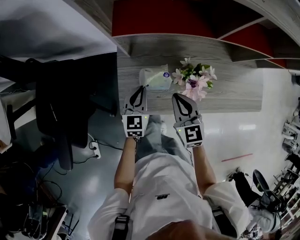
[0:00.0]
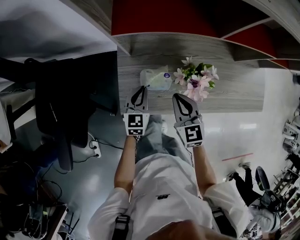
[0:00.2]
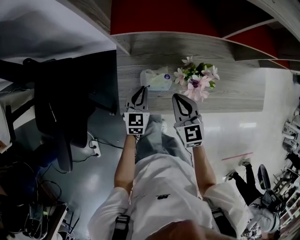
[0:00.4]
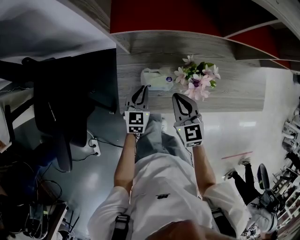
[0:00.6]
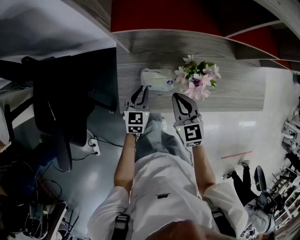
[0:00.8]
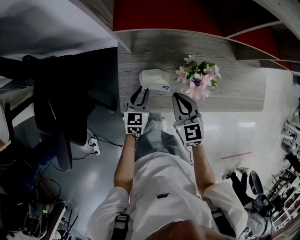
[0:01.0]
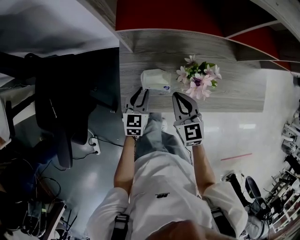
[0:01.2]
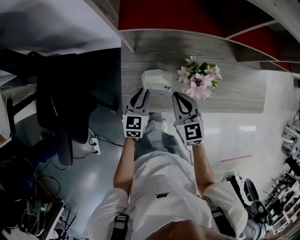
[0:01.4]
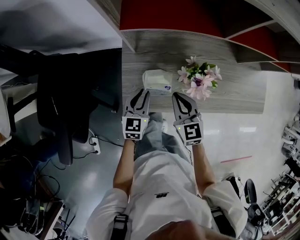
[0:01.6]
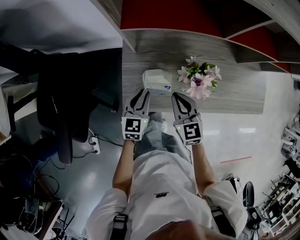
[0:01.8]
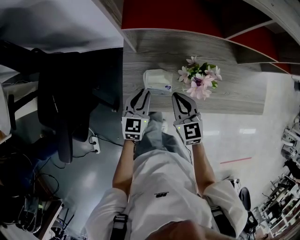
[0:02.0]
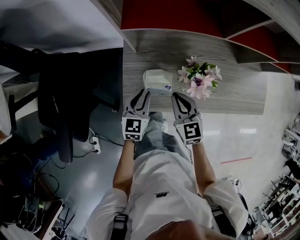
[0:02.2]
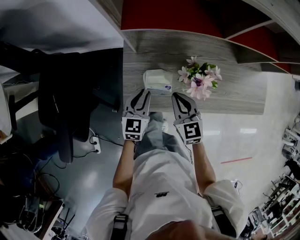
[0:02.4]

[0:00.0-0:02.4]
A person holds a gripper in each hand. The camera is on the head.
0:00.0 to 0:01.2: The left gripper changes place by some 5 cm.
0:01.2 to 0:02.4: The grippers move only a little.

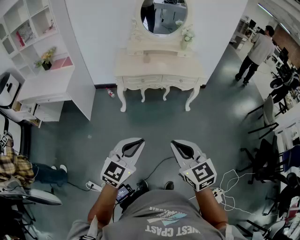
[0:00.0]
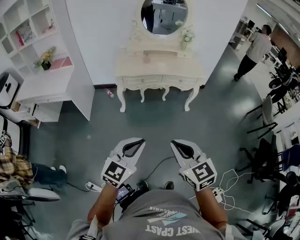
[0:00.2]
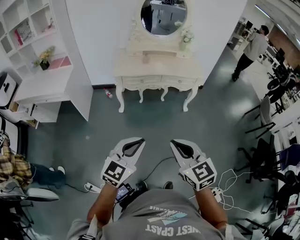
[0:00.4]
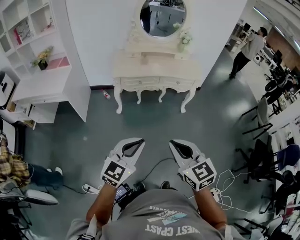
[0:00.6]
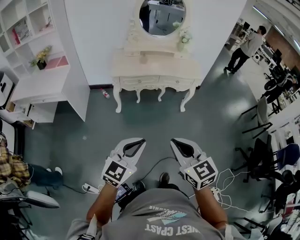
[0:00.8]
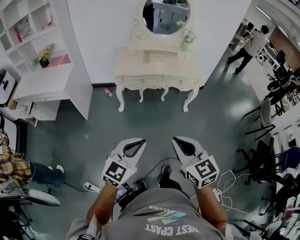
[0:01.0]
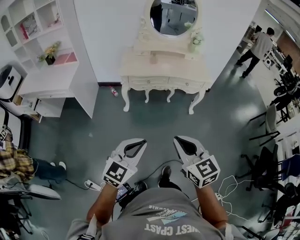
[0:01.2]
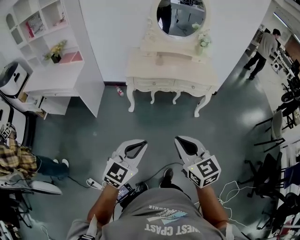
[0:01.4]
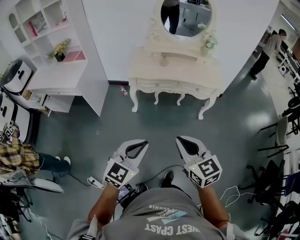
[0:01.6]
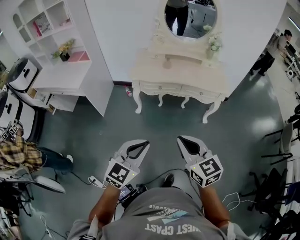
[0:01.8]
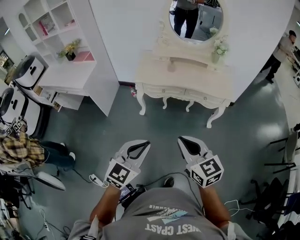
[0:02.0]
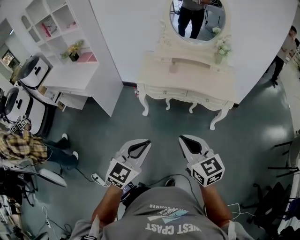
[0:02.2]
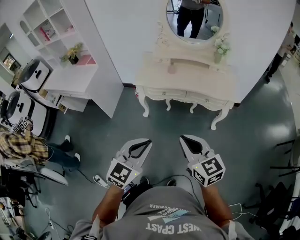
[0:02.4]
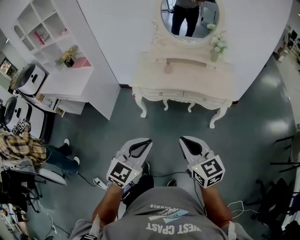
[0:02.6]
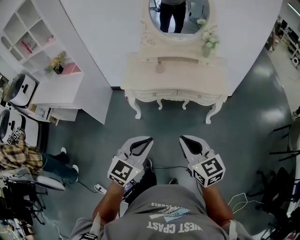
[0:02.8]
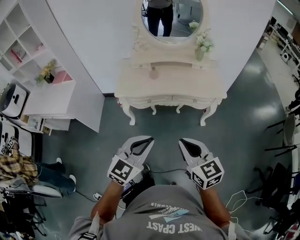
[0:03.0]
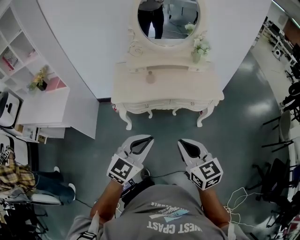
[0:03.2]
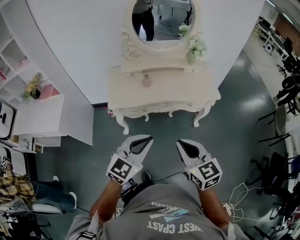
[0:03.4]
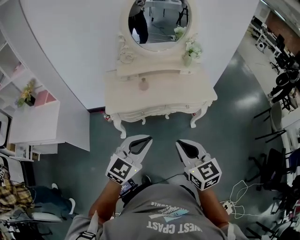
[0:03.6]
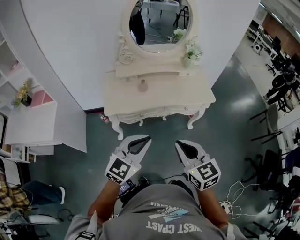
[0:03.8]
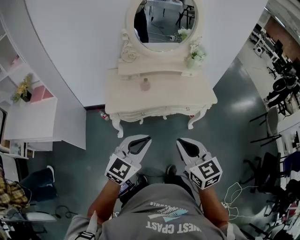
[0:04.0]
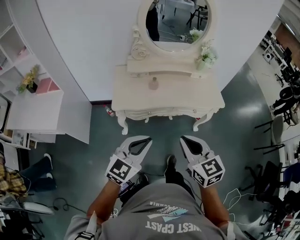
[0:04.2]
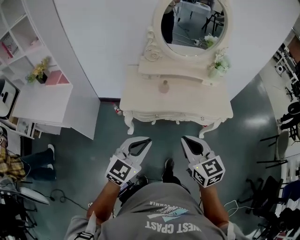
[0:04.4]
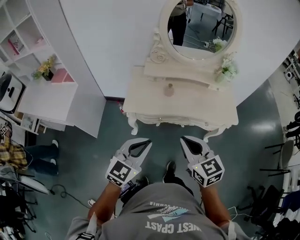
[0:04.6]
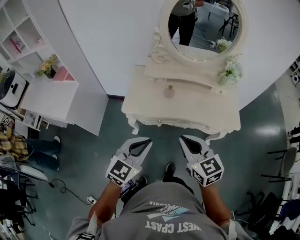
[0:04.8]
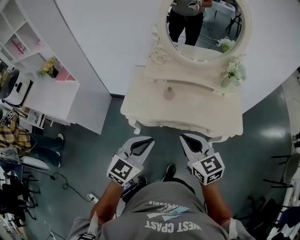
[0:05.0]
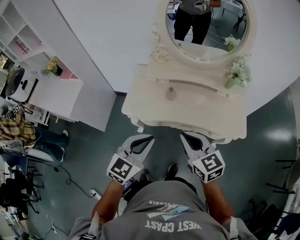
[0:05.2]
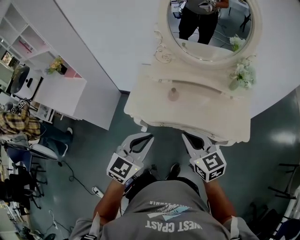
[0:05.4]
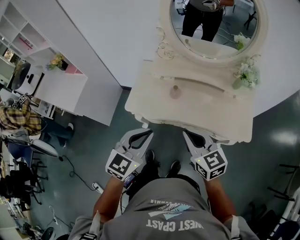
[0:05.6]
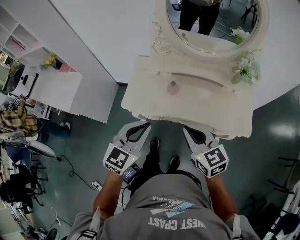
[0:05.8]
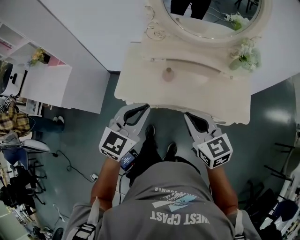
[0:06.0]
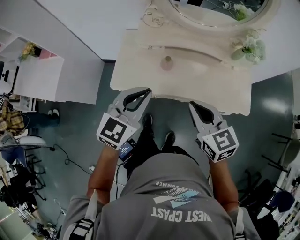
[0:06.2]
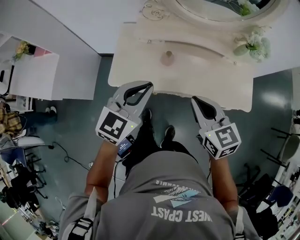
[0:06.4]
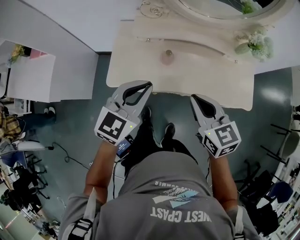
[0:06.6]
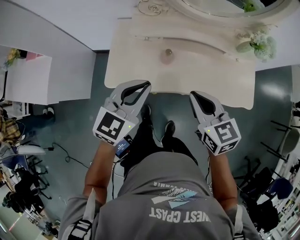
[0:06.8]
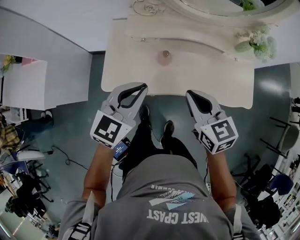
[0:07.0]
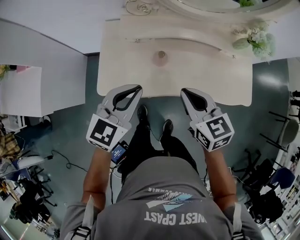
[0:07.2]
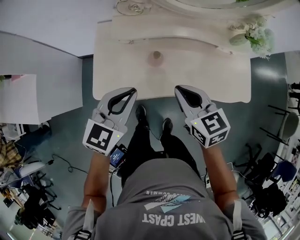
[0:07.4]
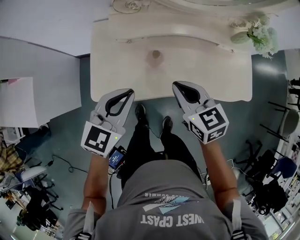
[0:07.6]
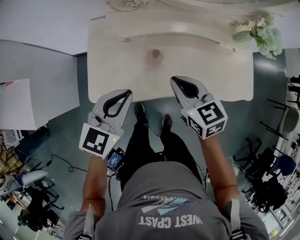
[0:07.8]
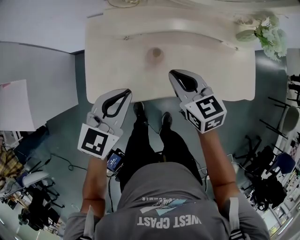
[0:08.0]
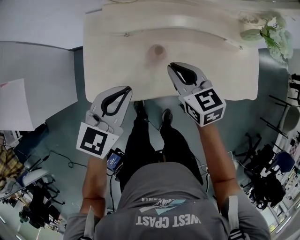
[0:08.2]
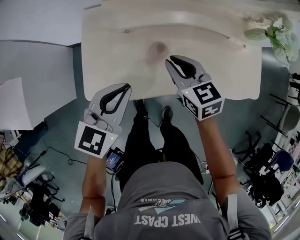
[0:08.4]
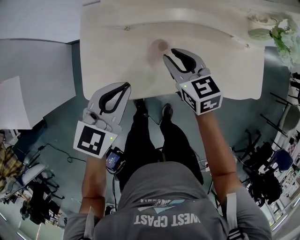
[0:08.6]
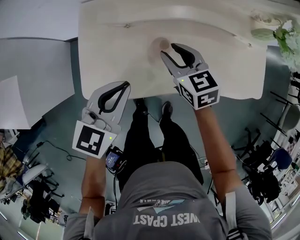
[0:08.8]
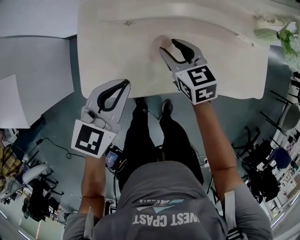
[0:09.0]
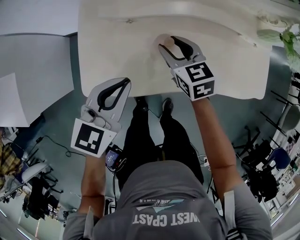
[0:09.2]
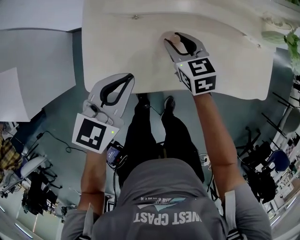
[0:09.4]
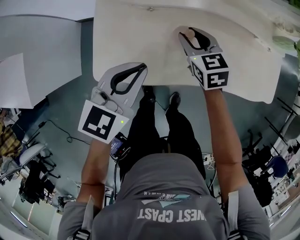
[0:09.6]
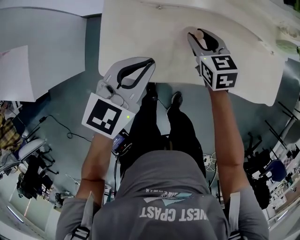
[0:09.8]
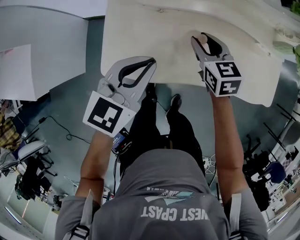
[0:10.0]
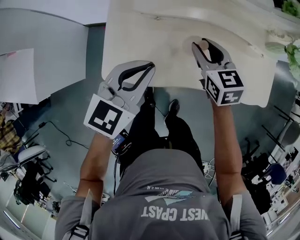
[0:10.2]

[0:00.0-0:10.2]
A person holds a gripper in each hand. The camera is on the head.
0:00.0 to 0:01.4: The right gripper is displaced forward by approximately 10 cm. Meanwhile the left gripper travels forward by roughly 5 cm.
0:01.4 to 0:03.0: The grippers both shift forward and to the right by some 30 cm.
0:03.0 to 0:04.4: The grippers both shift to the left and forward by about 20 cm.
0:04.4 to 0:05.8: The two grippers go some 25 cm forward and to the right.
0:05.8 to 0:07.2: The grippers both shift forward and downward by some 15 cm.
0:07.2 to 0:08.8: The right gripper travels downward and forward by approximately 25 cm, and opens its fingers, while the left gripper shifts approximately 15 cm downward and forward.
0:08.8 to 0:10.2: The grippers move only a little.

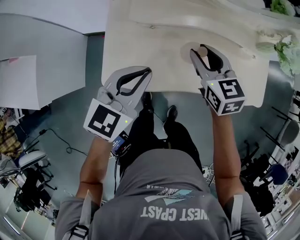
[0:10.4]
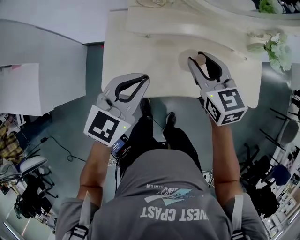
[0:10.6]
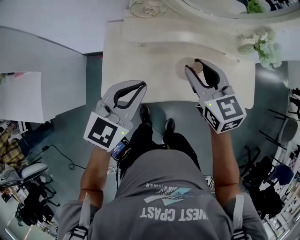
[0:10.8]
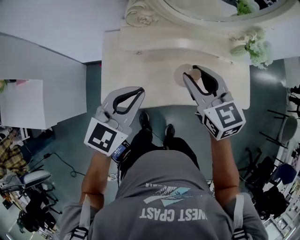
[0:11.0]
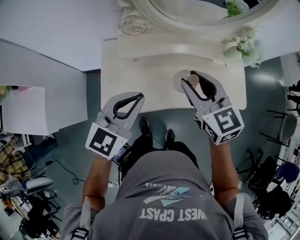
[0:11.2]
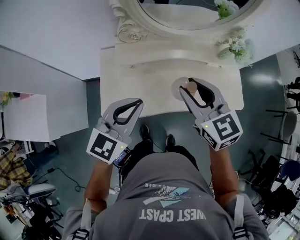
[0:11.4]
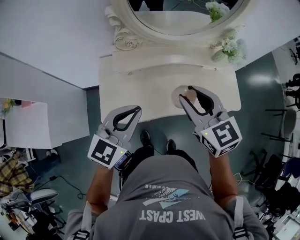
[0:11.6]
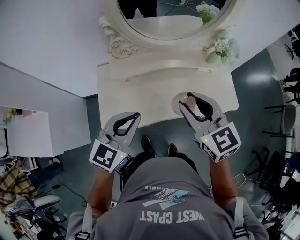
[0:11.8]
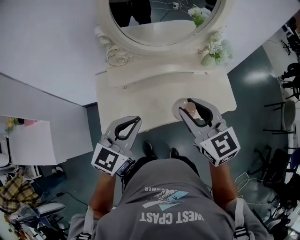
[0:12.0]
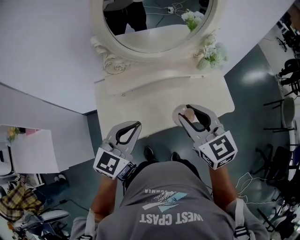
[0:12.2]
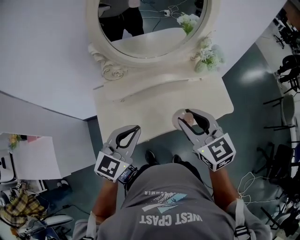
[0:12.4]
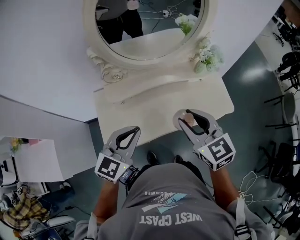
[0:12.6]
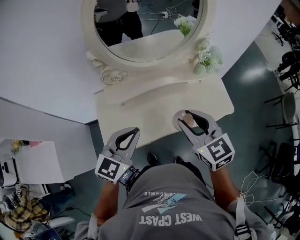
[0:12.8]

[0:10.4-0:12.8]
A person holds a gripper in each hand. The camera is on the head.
0:10.4 to 0:11.6: The right gripper goes some 25 cm upward and backward. The left gripper moves upward, backward and to the right, roughly 15 cm.
0:11.6 to 0:12.8: The right gripper shifts about 5 cm to the right.

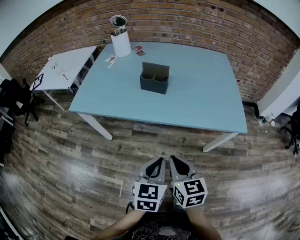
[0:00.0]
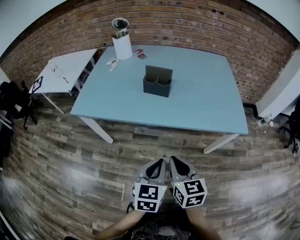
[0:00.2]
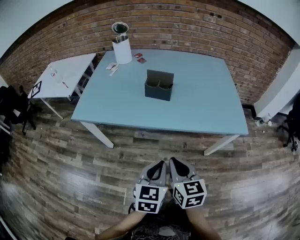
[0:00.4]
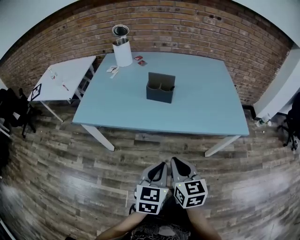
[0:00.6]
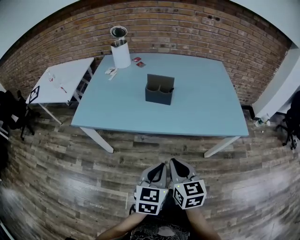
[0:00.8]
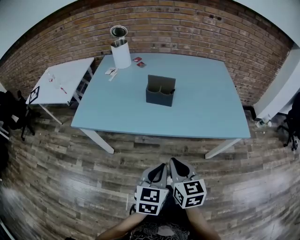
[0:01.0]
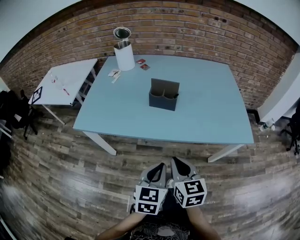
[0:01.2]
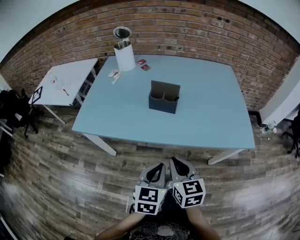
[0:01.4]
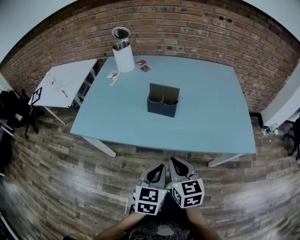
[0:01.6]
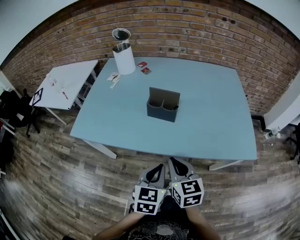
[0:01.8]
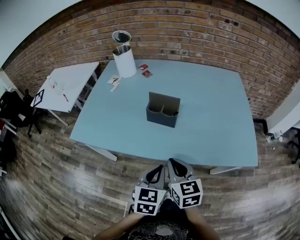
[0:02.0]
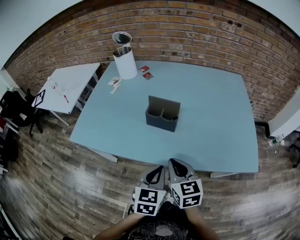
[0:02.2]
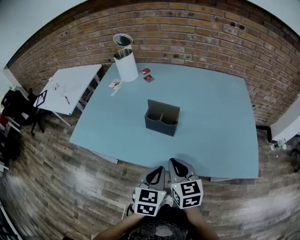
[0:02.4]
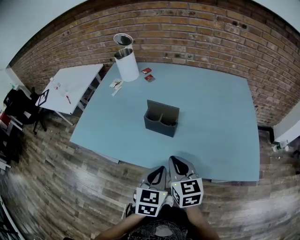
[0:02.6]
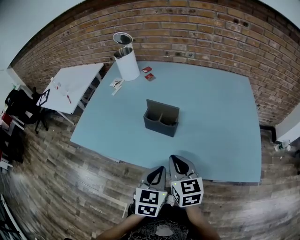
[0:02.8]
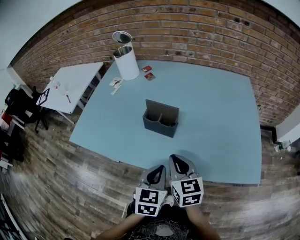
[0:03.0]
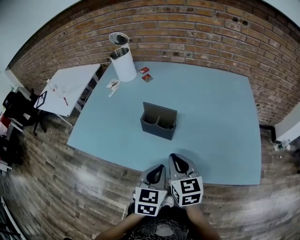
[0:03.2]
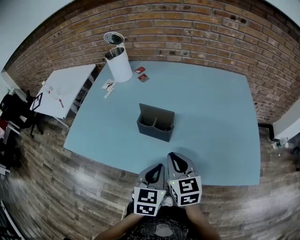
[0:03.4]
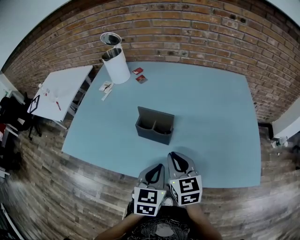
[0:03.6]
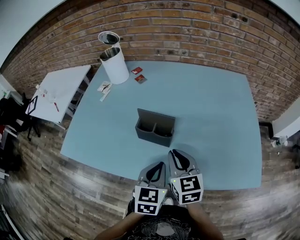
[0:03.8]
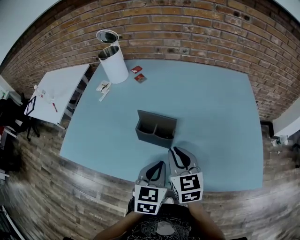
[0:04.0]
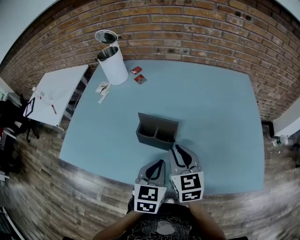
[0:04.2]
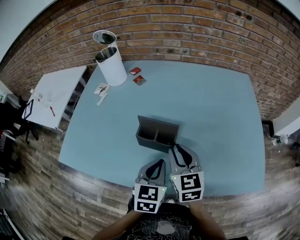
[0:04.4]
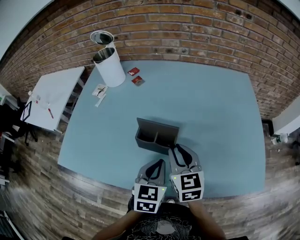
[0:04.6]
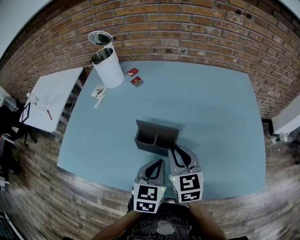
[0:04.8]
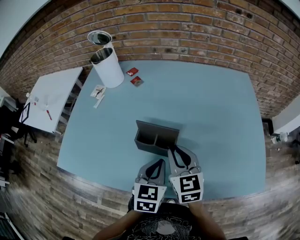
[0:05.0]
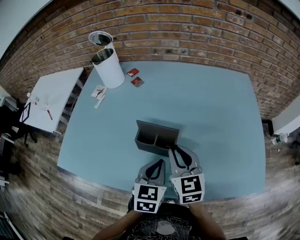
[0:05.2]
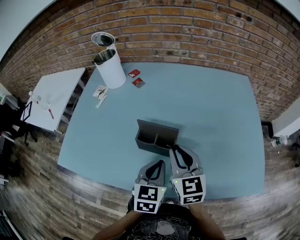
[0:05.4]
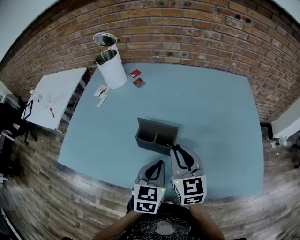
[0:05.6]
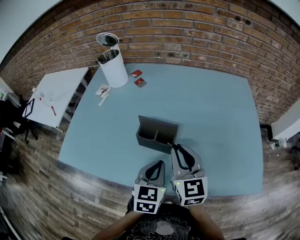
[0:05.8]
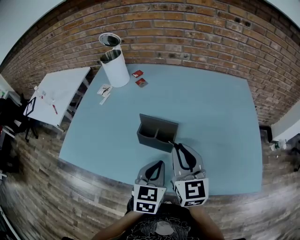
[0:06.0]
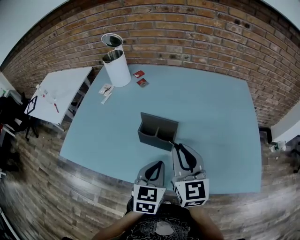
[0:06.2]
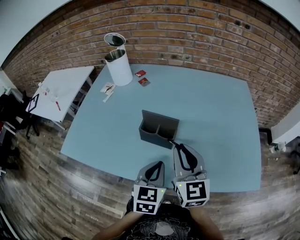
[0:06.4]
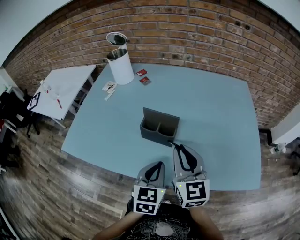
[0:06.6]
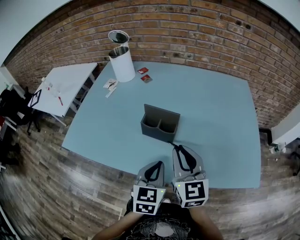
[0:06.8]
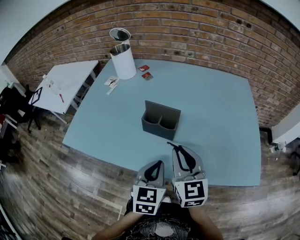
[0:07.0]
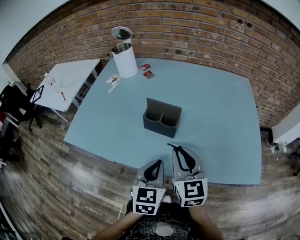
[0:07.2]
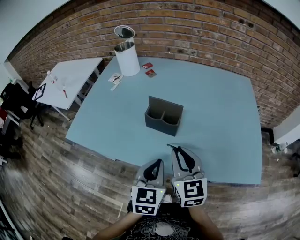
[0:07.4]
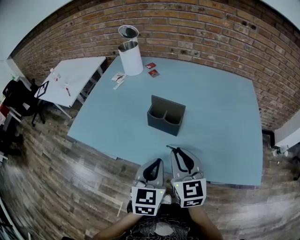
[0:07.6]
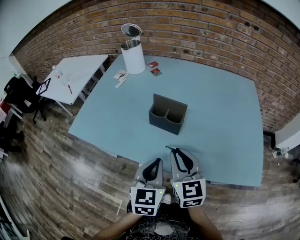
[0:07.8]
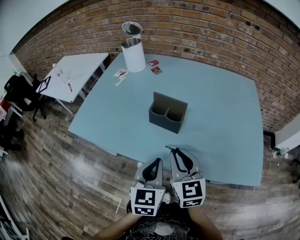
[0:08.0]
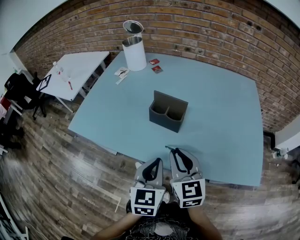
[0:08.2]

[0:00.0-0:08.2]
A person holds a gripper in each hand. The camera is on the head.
0:00.0 to 0:01.6: Both grippers travel together forward and to the left, approximately 10 cm.
0:01.6 to 0:03.2: The right gripper goes roughly 15 cm forward, while the left gripper shifts roughly 15 cm forward and to the right.
0:03.2 to 0:05.0: Both grippers move forward, some 10 cm.
0:05.0 to 0:06.6: The left gripper moves backward, about 10 cm, while the right gripper is displaced backward and upward by roughly 10 cm.
0:06.6 to 0:08.2: The two grippers go about 5 cm backward.
